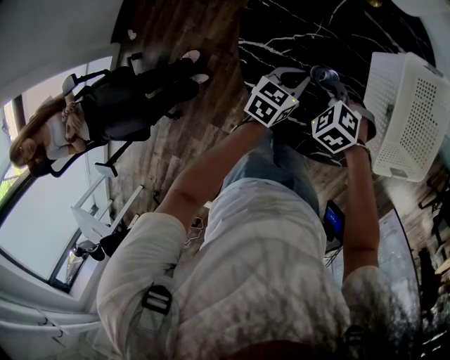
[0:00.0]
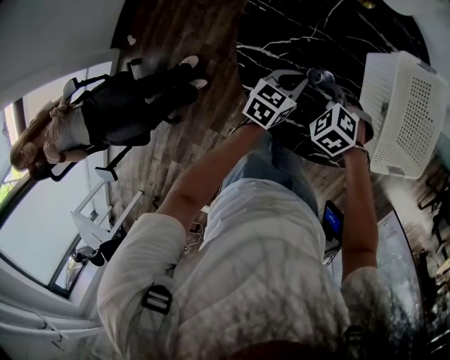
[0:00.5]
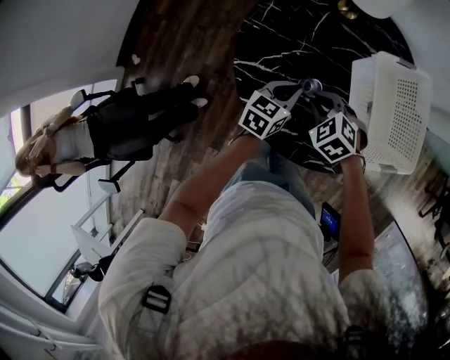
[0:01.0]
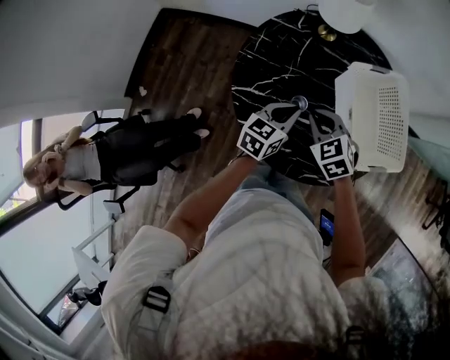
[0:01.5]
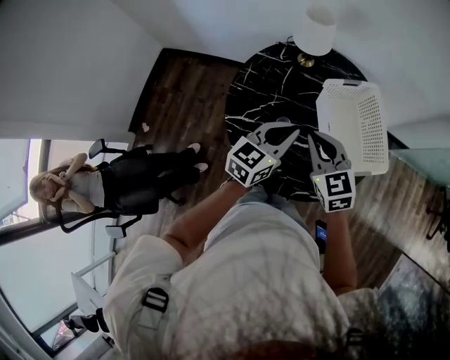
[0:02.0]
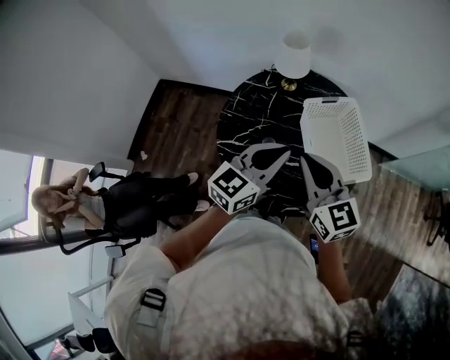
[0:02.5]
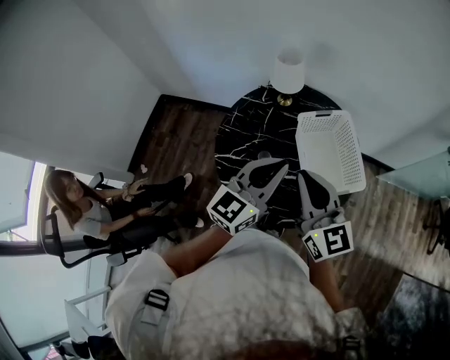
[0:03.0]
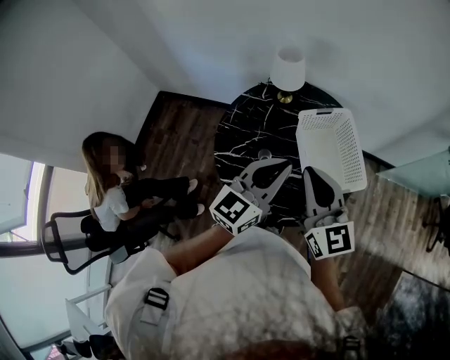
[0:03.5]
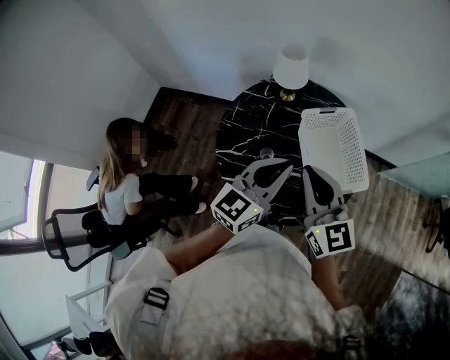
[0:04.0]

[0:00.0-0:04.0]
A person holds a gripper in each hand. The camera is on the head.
0:00.0 to 0:02.0: The grippers both shift upward by roughly 30 cm. The right gripper angles its fingers upward, by roughly 50 degrees. Meanwhile the left gripper changes its angle by roughly 30 degrees.
0:02.0 to 0:04.0: Both grippers travel together upward, some 15 cm. The right gripper rotates about 30 degrees.

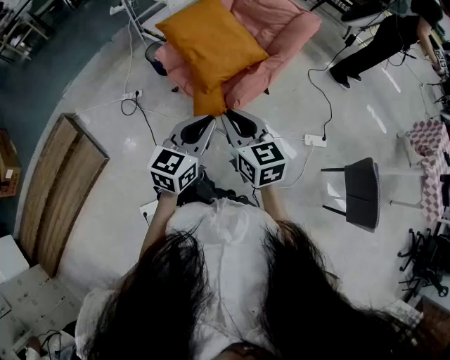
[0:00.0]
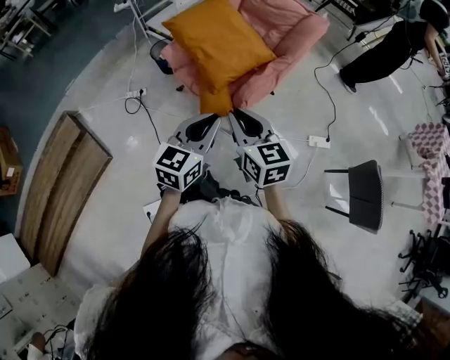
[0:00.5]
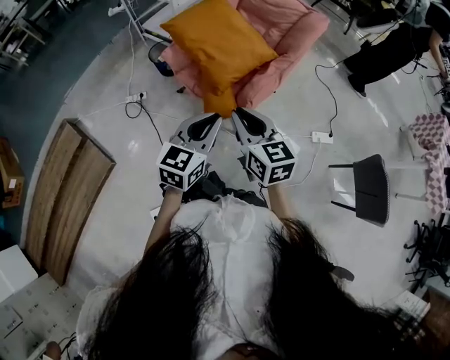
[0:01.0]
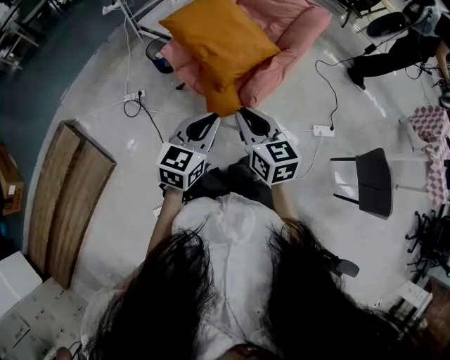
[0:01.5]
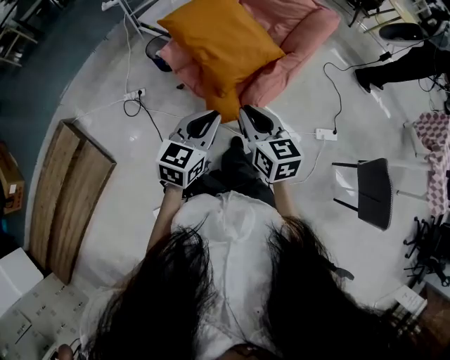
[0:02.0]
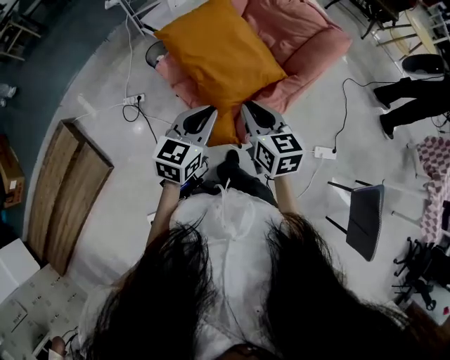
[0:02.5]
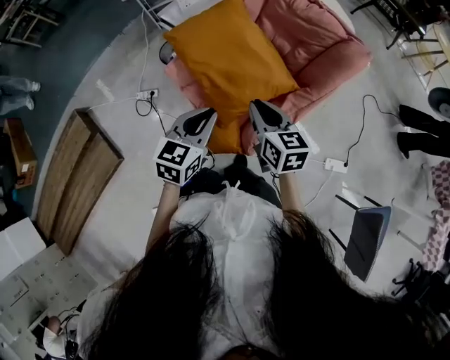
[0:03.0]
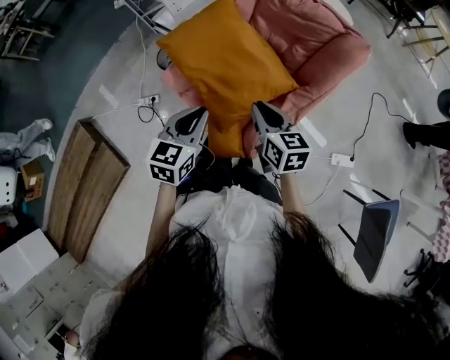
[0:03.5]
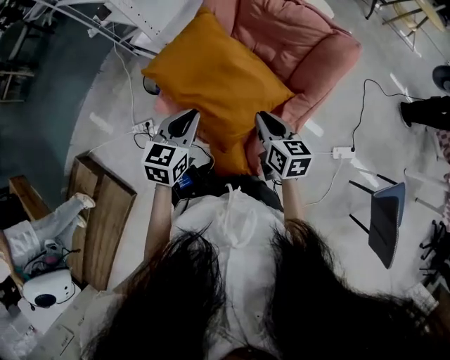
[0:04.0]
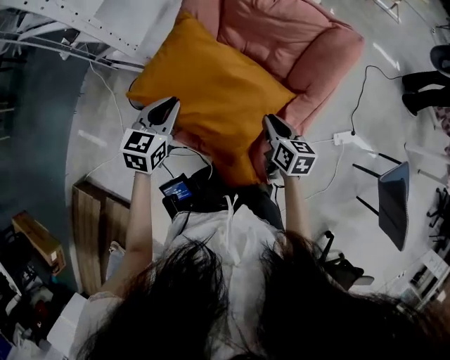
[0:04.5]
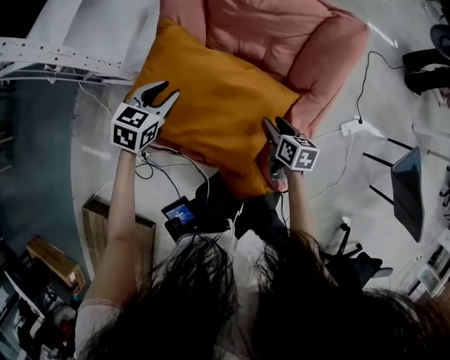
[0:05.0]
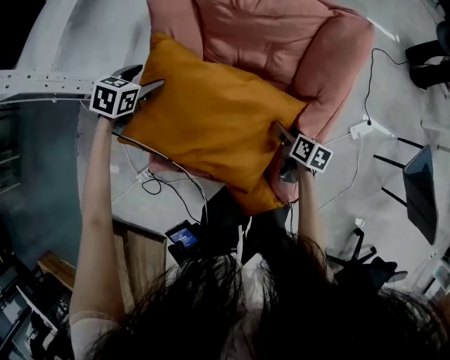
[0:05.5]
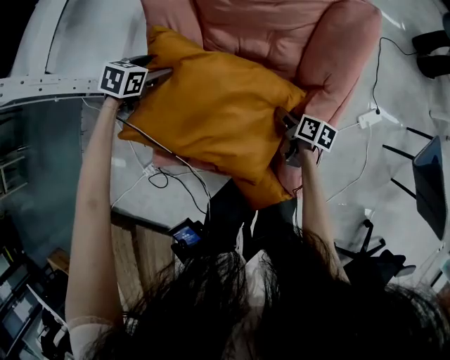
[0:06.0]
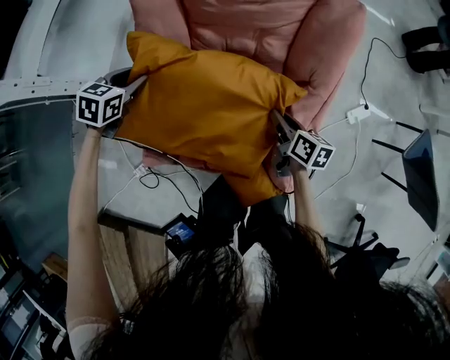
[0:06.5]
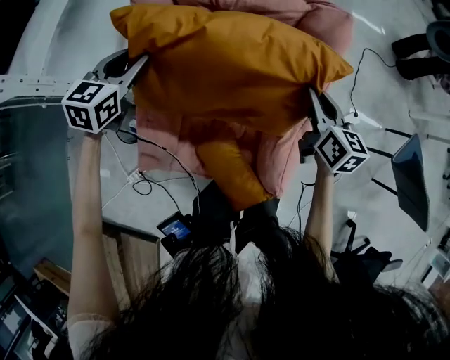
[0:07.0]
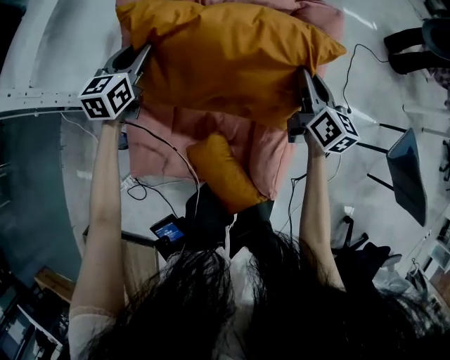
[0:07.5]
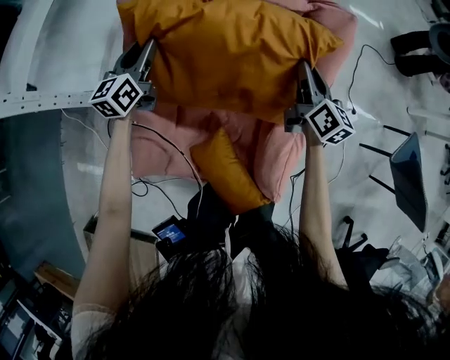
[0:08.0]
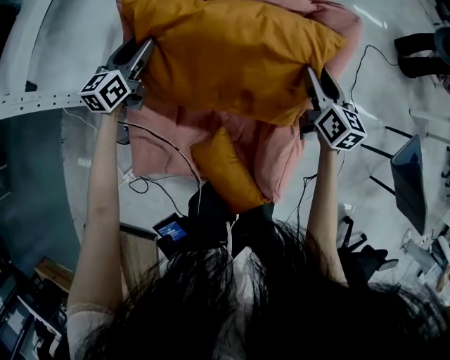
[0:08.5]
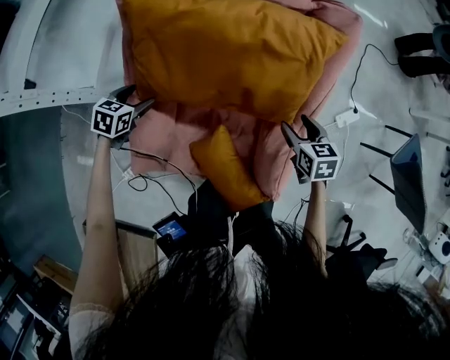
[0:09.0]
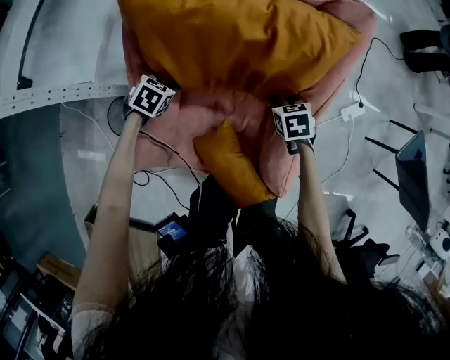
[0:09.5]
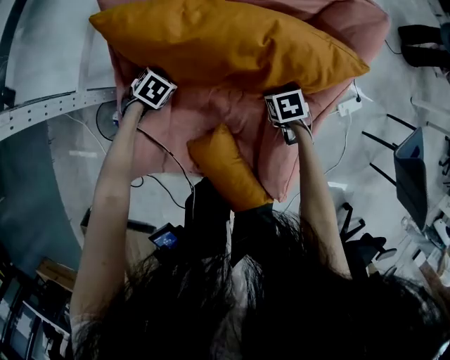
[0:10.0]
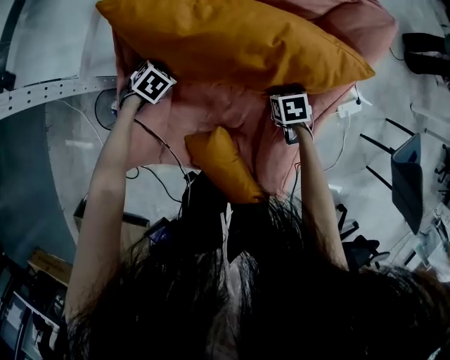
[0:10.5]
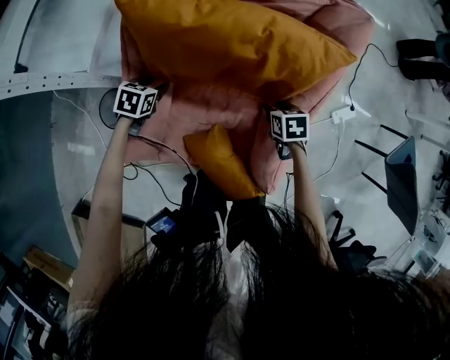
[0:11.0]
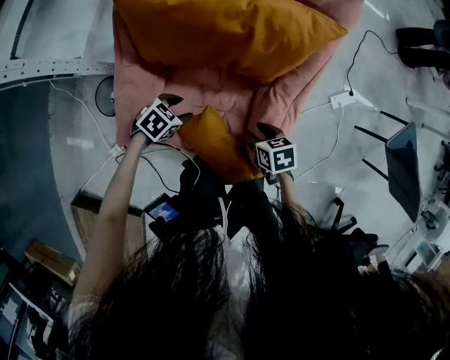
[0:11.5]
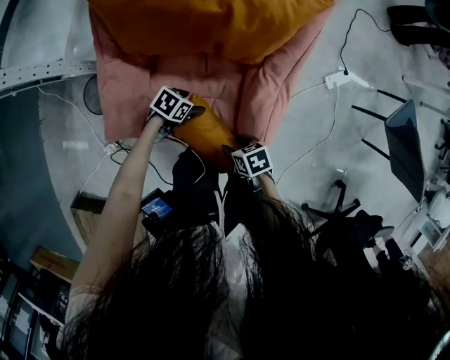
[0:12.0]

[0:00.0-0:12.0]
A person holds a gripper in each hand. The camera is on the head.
0:00.0 to 0:02.0: The left gripper is displaced forward, to the left and downward by some 10 cm; the right gripper goes some 10 cm forward.
0:02.0 to 0:04.0: The grippers both shift forward by about 30 cm.
0:04.0 to 0:06.0: The left gripper goes some 40 cm forward and downward, changes its angle by about 40 degrees, and opens up, while the right gripper travels downward by some 25 cm, twists approximately 40 degrees clockwise, seen from behind, and opens.
0:06.0 to 0:08.0: The left gripper goes about 15 cm upward and forward, points its fingers about 50 degrees further upward, and closes its fingers. The right gripper is displaced upward and forward by roughly 25 cm, angles its fingers upward, by about 30 degrees, and closes its fingers.
0:08.0 to 0:10.0: The two grippers go roughly 25 cm downward. The left gripper tilts its fingers about 60 degrees downward; the right gripper tilts its fingers roughly 60 degrees downward, and opens, then closes once more.
0:10.0 to 0:12.0: The left gripper travels upward and back again, about 5 cm each way, rotates approximately 30 degrees, and opens up. Meanwhile the right gripper ends up about 35 cm from where it was, and changes its angle by about 20 degrees.

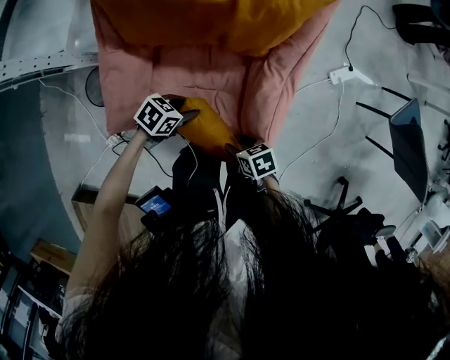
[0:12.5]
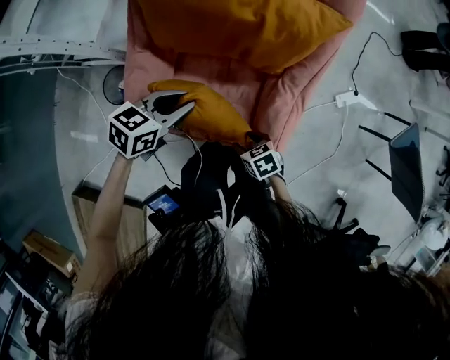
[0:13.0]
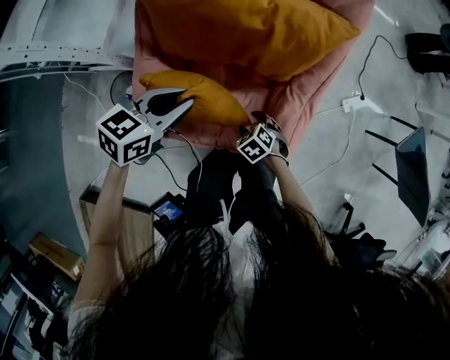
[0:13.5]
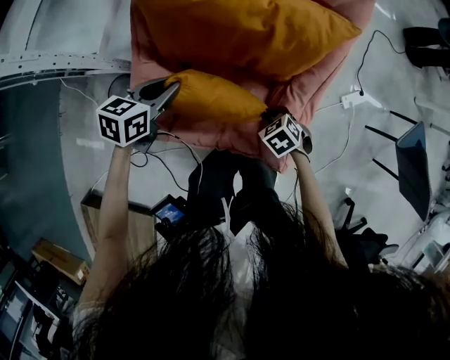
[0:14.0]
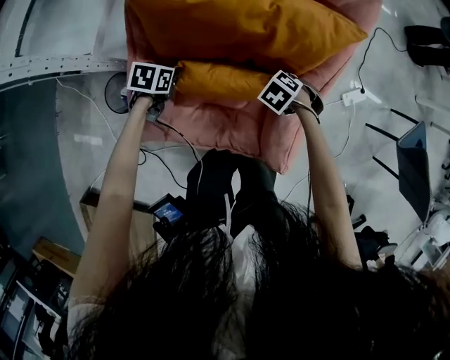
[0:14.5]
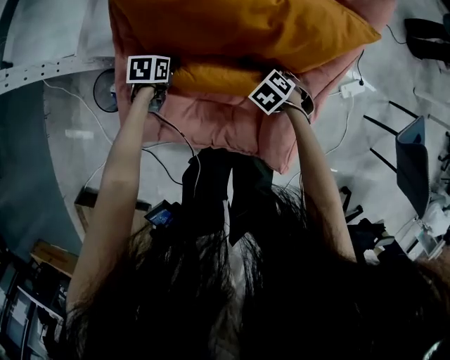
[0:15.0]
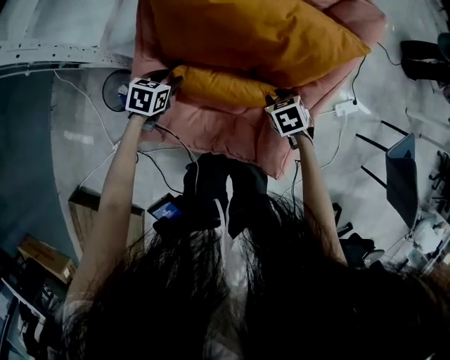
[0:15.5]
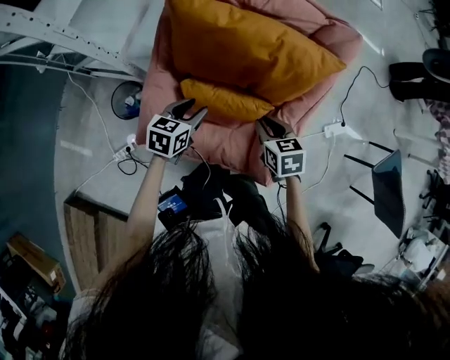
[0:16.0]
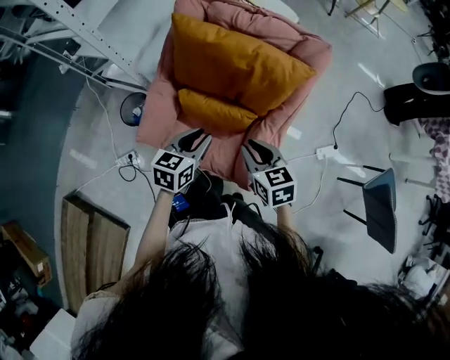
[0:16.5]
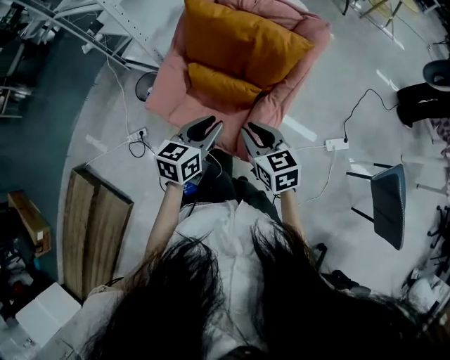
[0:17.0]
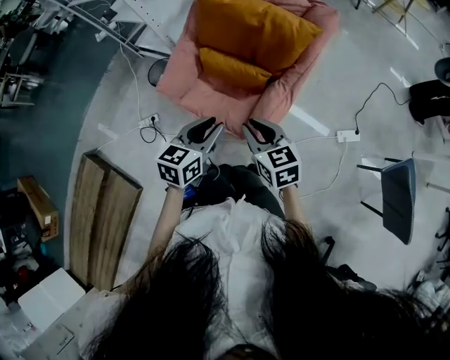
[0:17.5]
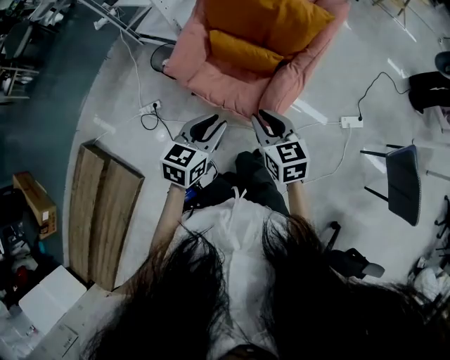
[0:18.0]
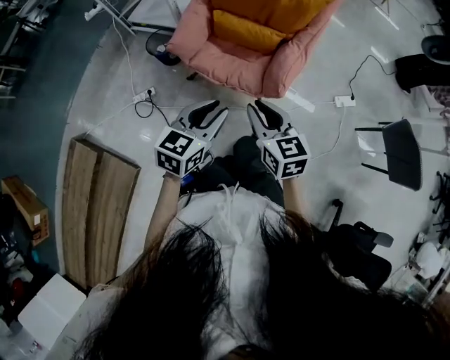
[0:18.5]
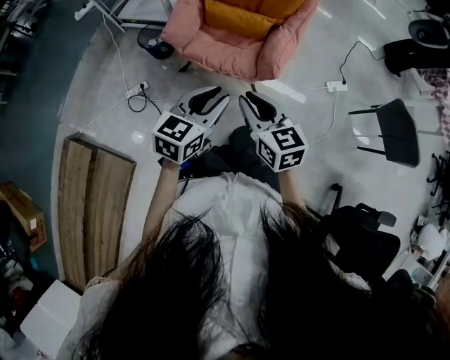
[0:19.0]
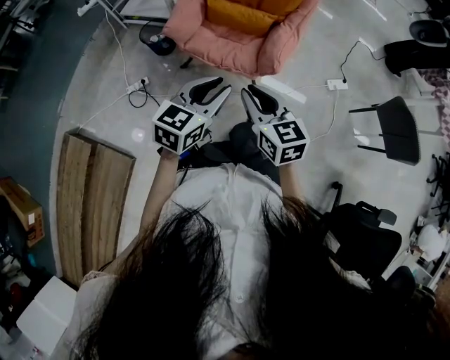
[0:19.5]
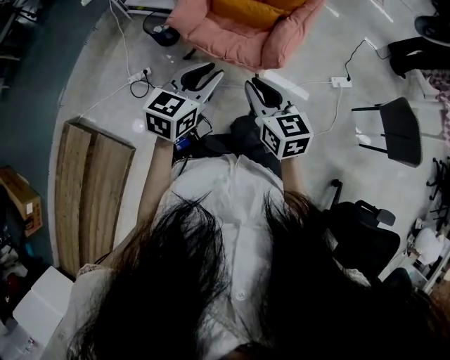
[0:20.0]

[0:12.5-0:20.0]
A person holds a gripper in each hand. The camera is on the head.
0:12.5 to 0:14.5: The left gripper reaches approximately 25 cm upward, then returns, and changes its angle by some 30 degrees. The right gripper ends up about 25 cm from where it was, rolls counterclockwise, seen from behind, by some 40 degrees, and closes.
0:14.5 to 0:16.5: The grippers both shift upward by some 25 cm. The left gripper tilts its fingers some 30 degrees upward, while the right gripper angles its fingers upward, by roughly 50 degrees.
0:16.5 to 0:18.0: The two grippers go roughly 20 cm backward.
0:18.0 to 0:20.0: Both grippers move backward and to the left, about 20 cm.

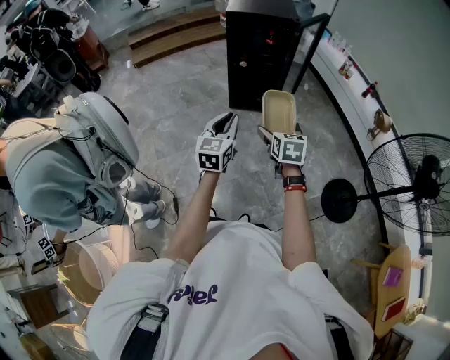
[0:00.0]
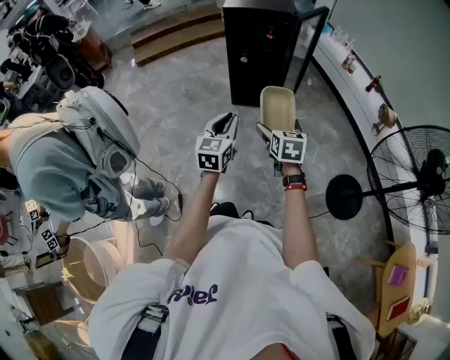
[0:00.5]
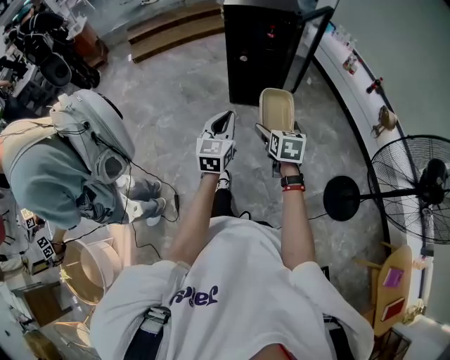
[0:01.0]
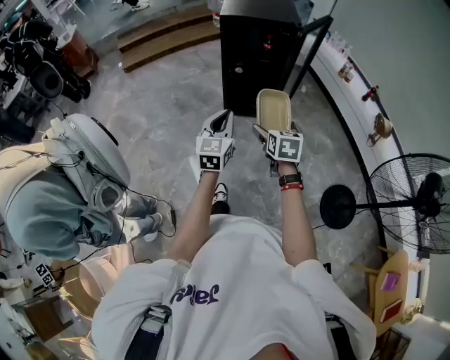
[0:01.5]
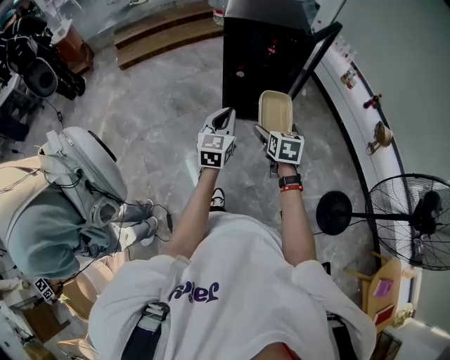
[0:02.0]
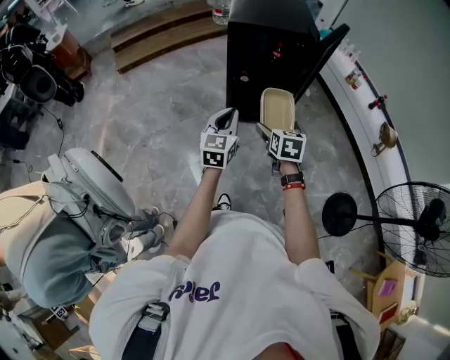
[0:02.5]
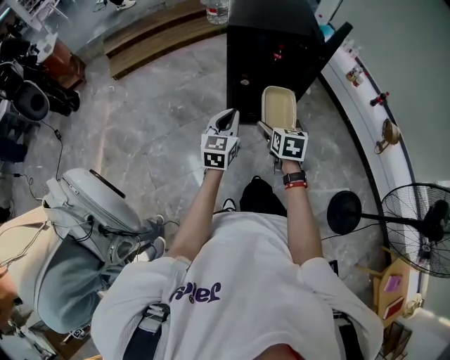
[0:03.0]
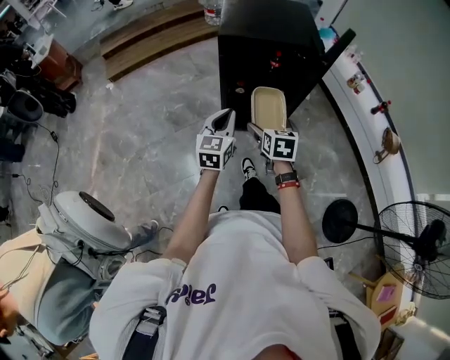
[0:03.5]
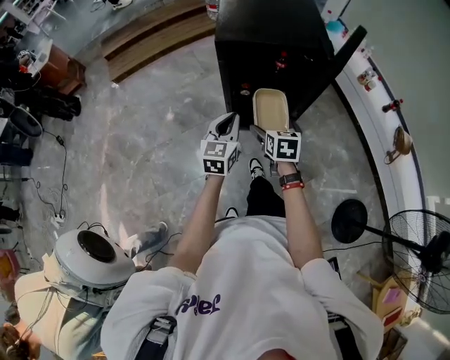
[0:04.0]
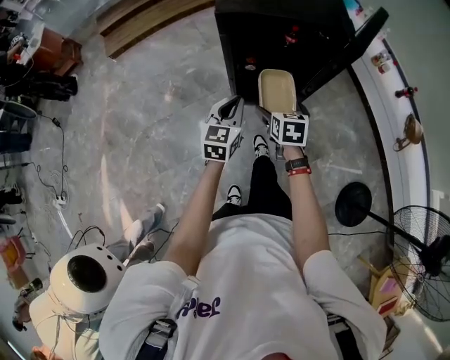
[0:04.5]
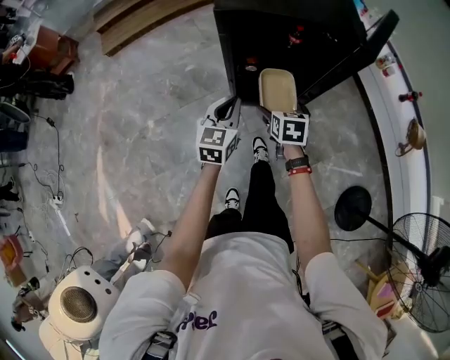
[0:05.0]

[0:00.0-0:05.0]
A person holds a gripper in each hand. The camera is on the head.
0:00.0 to 0:02.5: The grippers both shift forward by approximately 30 cm.
0:02.5 to 0:05.0: Both grippers move forward and downward, approximately 30 cm.
